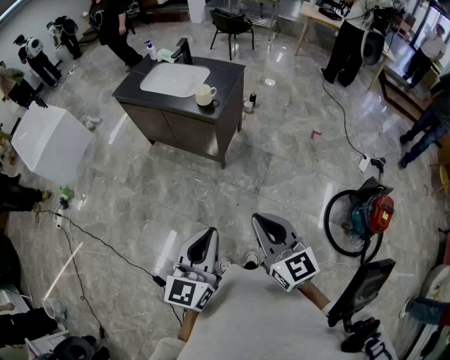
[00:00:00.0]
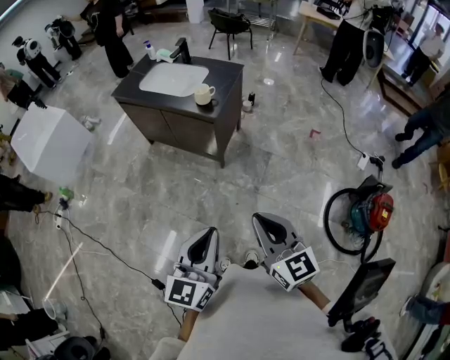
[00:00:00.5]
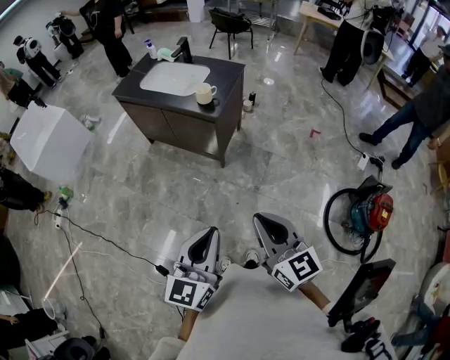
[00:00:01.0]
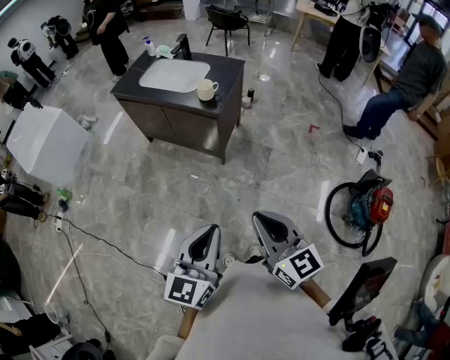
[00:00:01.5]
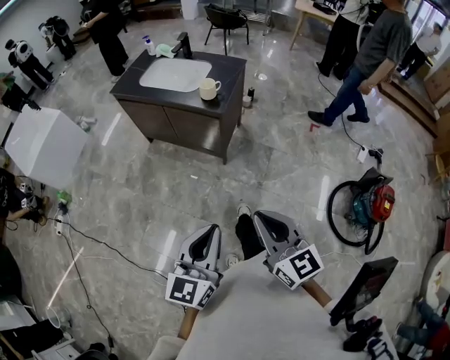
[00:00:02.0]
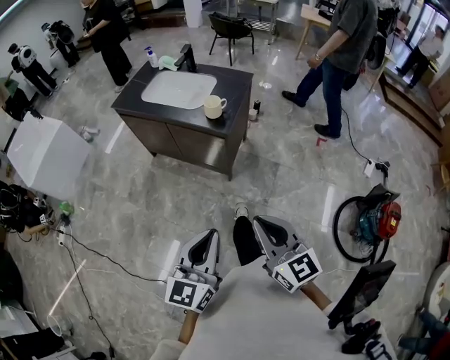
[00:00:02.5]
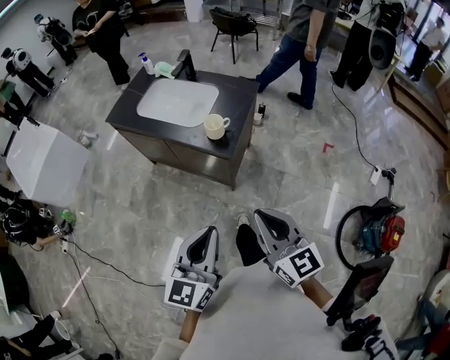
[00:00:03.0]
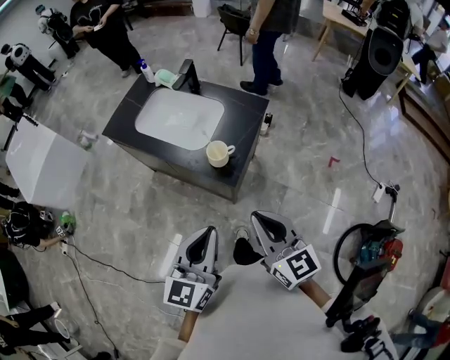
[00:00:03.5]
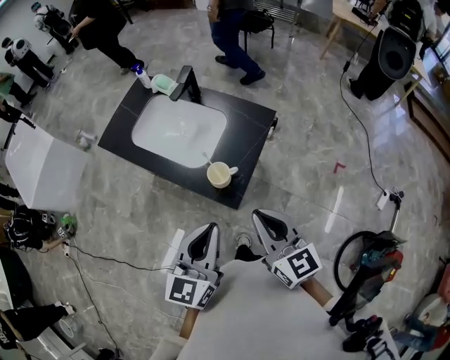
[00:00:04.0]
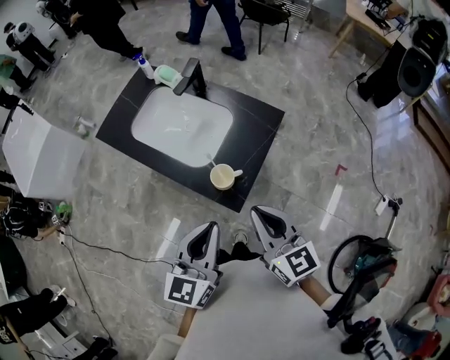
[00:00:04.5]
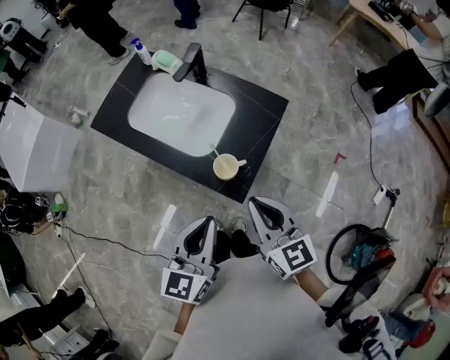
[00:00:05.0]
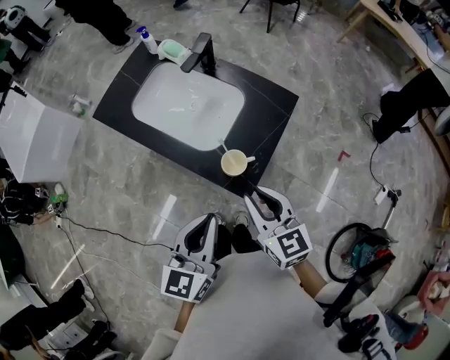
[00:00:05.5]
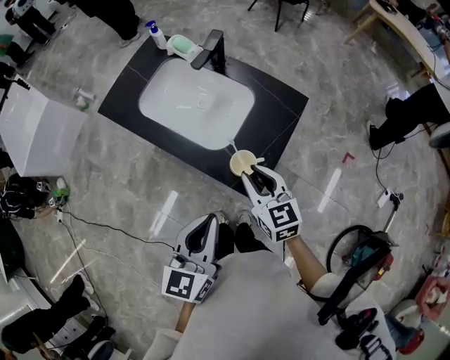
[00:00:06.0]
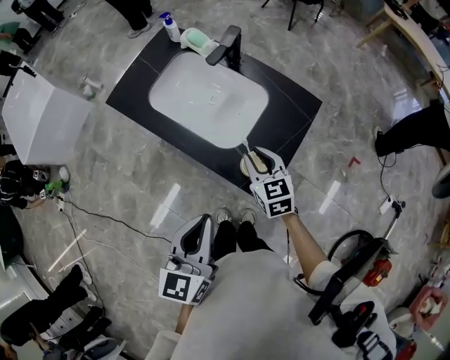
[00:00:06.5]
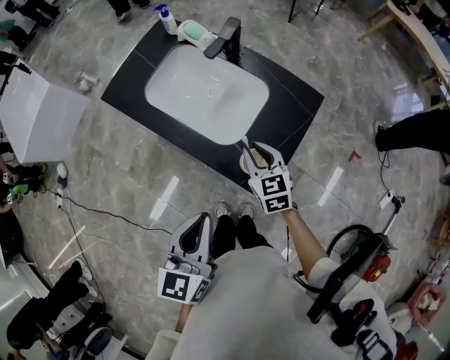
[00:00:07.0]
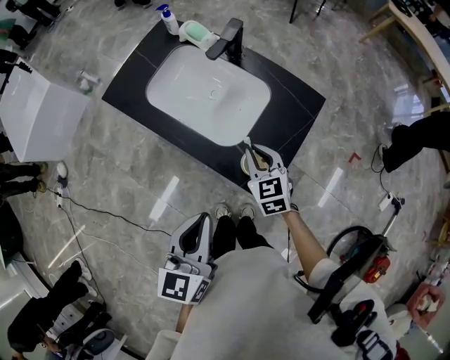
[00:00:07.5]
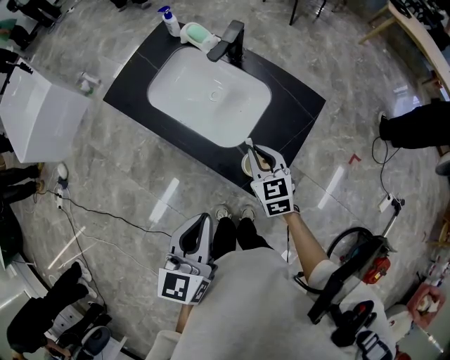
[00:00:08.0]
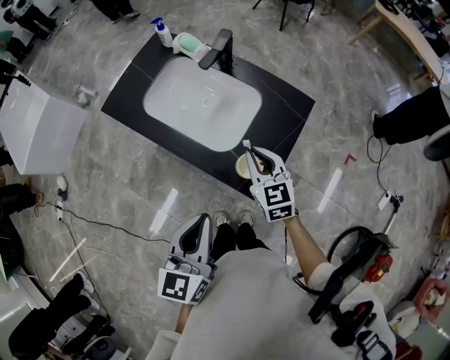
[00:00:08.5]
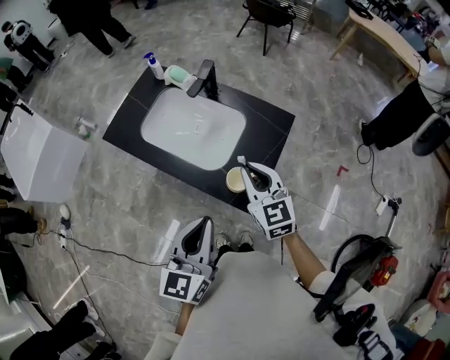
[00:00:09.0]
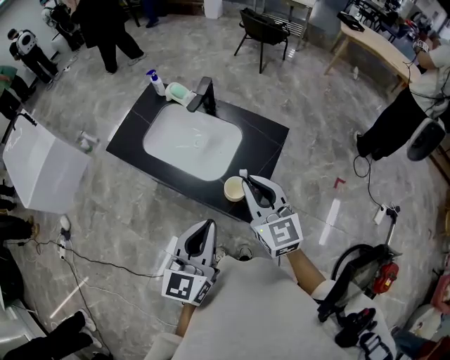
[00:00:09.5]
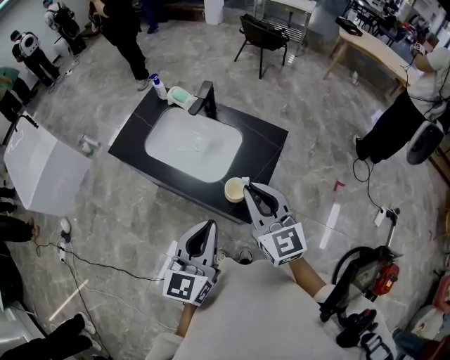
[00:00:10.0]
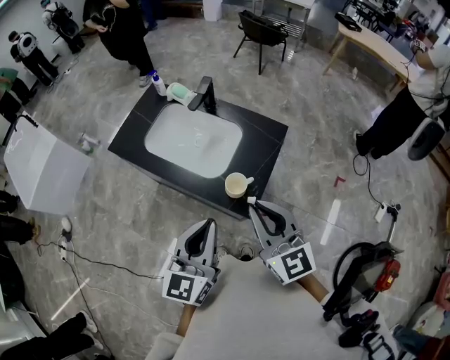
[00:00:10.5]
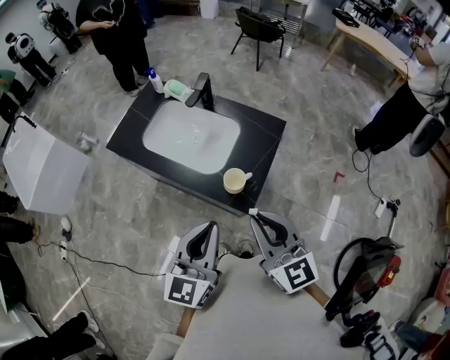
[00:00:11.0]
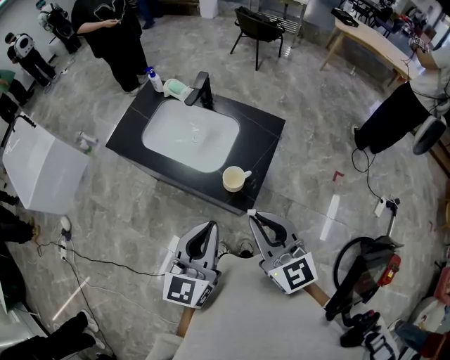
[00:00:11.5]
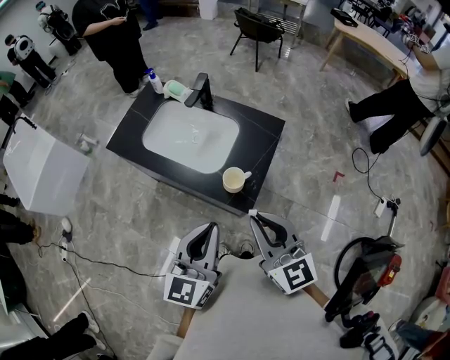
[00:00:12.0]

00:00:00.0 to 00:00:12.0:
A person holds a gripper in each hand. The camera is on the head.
00:00:00.0 to 00:00:02.0: The grippers stay close to where they were, moving slightly.
00:00:02.0 to 00:00:04.0: The two grippers travel together, forward, about 40 cm.
00:00:04.0 to 00:00:06.0: The left gripper moves to the left, roughly 5 cm, while the right gripper moves forward, downward and to the left, some 15 cm.
00:00:06.0 to 00:00:08.0: The right gripper is displaced forward and downward by approximately 10 cm.
00:00:08.0 to 00:00:10.0: The right gripper moves upward, roughly 20 cm, and rotates approximately 30 degrees; the left gripper changes place by approximately 5 cm.
00:00:10.0 to 00:00:12.0: The right gripper moves backward, approximately 10 cm.

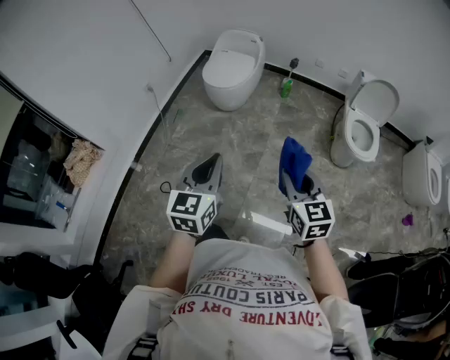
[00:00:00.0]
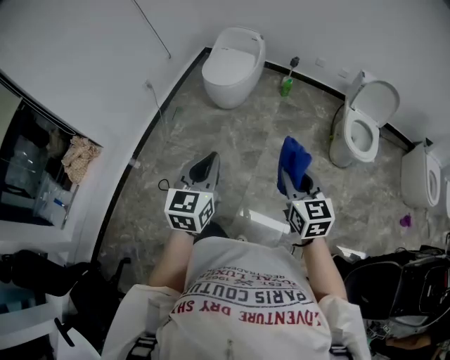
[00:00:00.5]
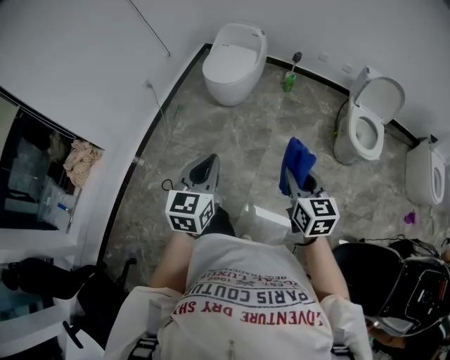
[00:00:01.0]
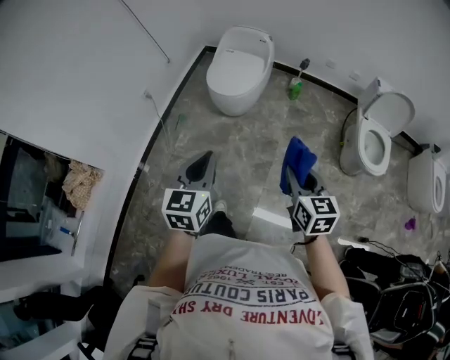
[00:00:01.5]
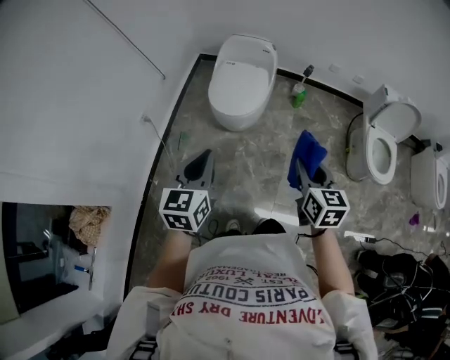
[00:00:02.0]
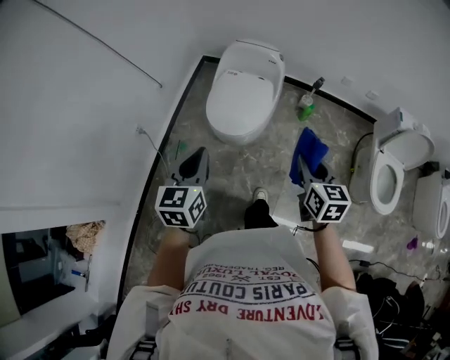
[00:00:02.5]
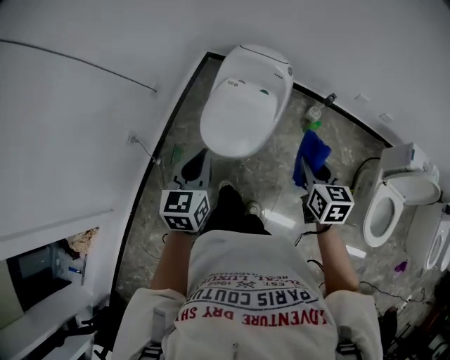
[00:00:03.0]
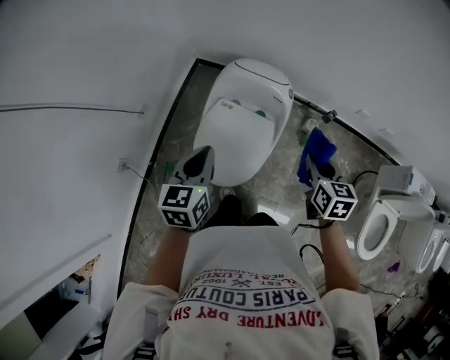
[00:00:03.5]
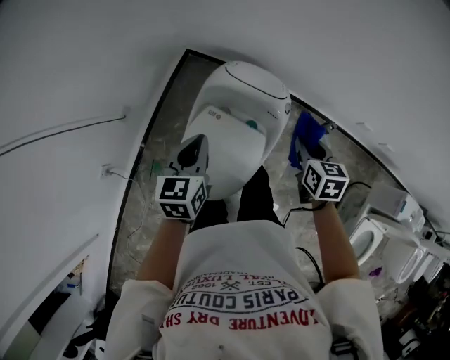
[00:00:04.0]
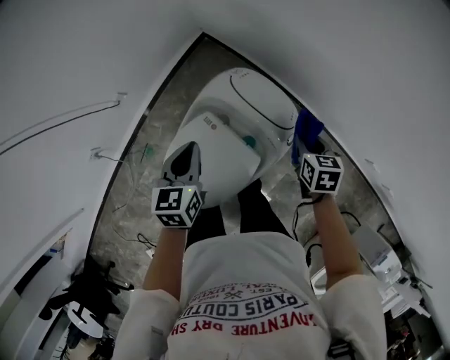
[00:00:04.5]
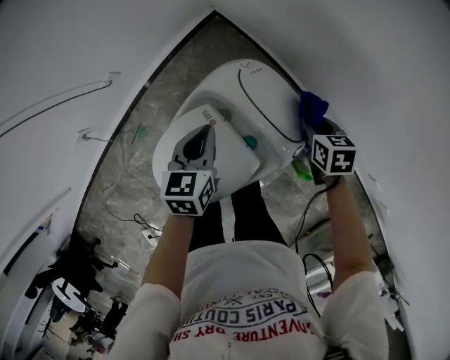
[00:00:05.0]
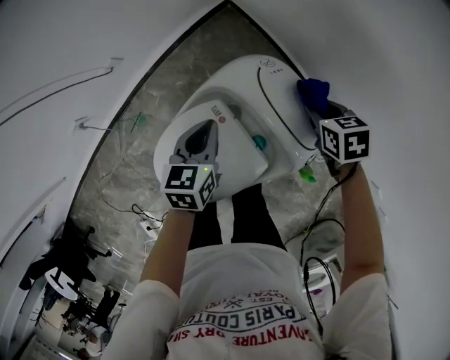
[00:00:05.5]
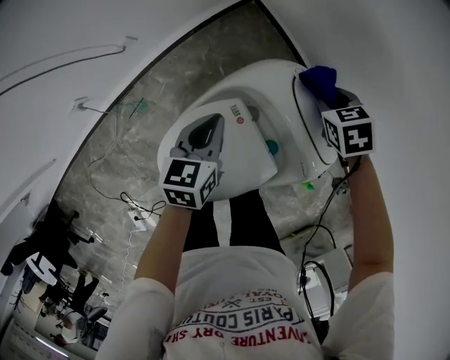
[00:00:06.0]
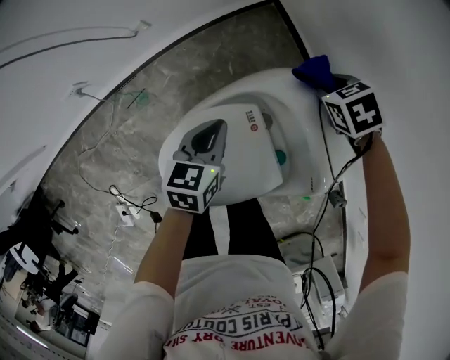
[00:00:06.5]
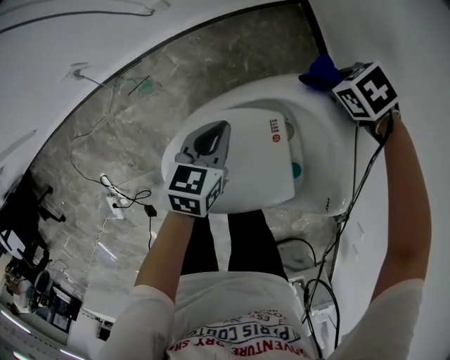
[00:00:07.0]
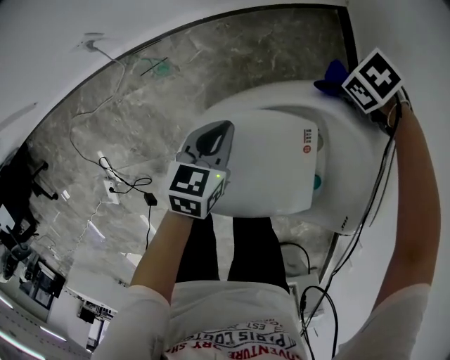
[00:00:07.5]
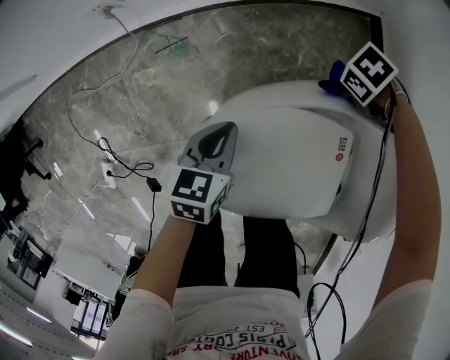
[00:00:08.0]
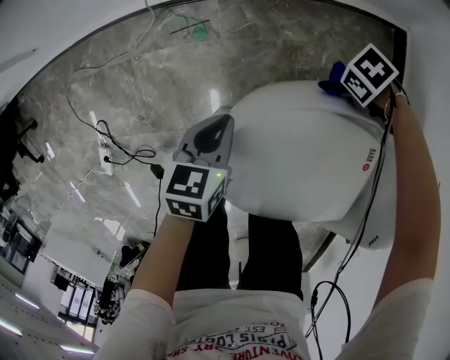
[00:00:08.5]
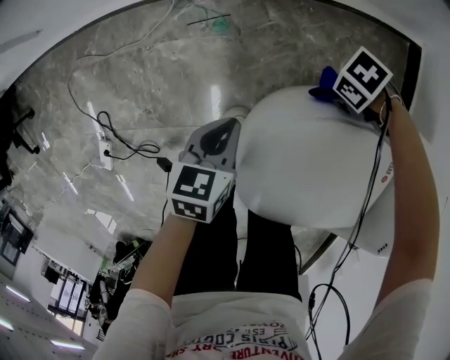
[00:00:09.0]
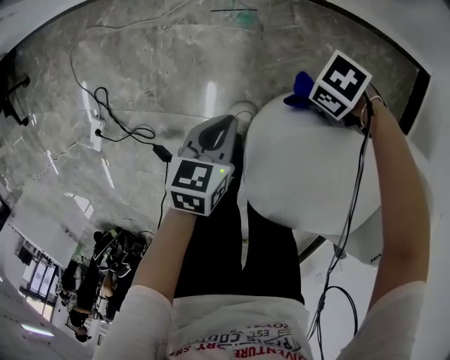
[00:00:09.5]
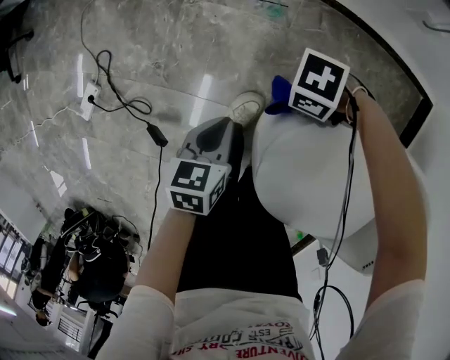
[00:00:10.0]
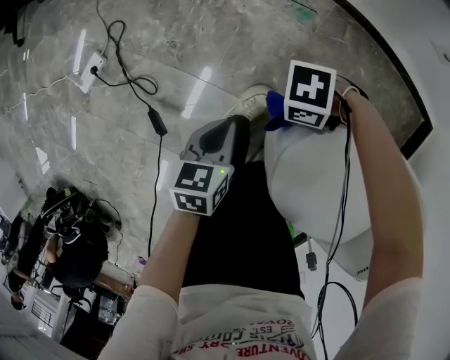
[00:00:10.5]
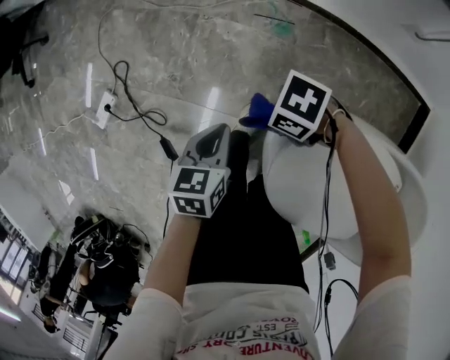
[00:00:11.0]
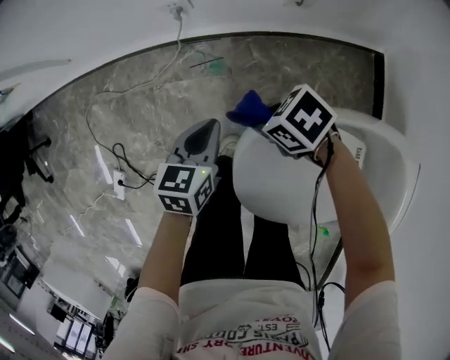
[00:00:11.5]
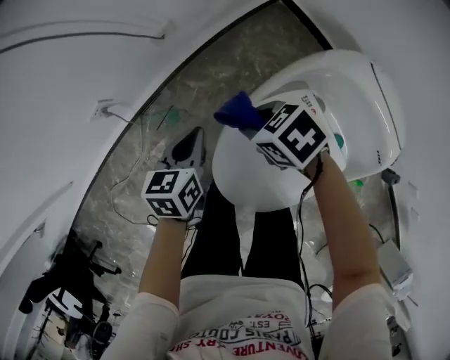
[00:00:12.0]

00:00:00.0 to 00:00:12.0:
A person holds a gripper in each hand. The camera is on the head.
00:00:00.0 to 00:00:02.0: The left gripper shifts about 40 cm forward and to the left. The right gripper is displaced forward by some 35 cm.
00:00:02.0 to 00:00:04.0: The two grippers travel together, forward, about 80 cm. The left gripper rotates approximately 20 degrees. Meanwhile the right gripper rotates roughly 20 degrees.
00:00:04.0 to 00:00:06.0: The right gripper ends up roughly 40 cm from where it was, and swivels about 60 degrees; the left gripper goes approximately 25 cm downward, and changes its angle by roughly 30 degrees.
00:00:06.0 to 00:00:08.0: The right gripper shifts by some 35 cm, and rotates roughly 60 degrees. The left gripper changes place by roughly 30 cm, and swivels roughly 20 degrees.
00:00:08.0 to 00:00:10.0: The left gripper moves to the right and backward, some 30 cm, and turns by roughly 30 degrees. Meanwhile the right gripper is displaced backward and to the right by some 40 cm, and rotates around the line of its fingers by approximately 50 degrees, counterclockwise from behind.
00:00:10.0 to 00:00:12.0: The left gripper ends up some 35 cm from where it was, and swivels some 50 degrees. The right gripper travels upward by about 25 cm, and turns by about 90 degrees.

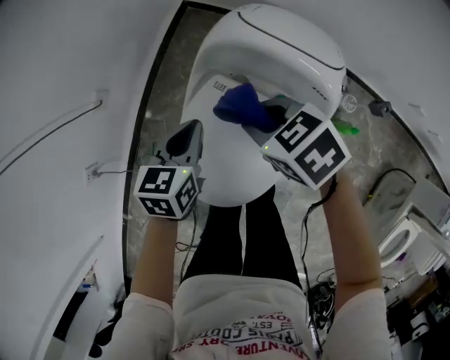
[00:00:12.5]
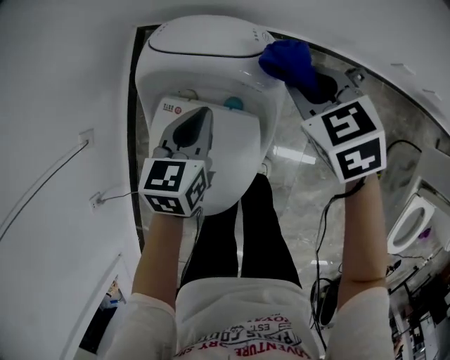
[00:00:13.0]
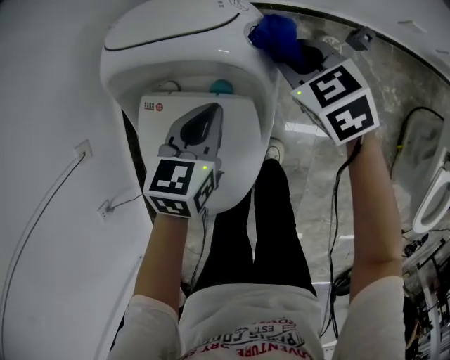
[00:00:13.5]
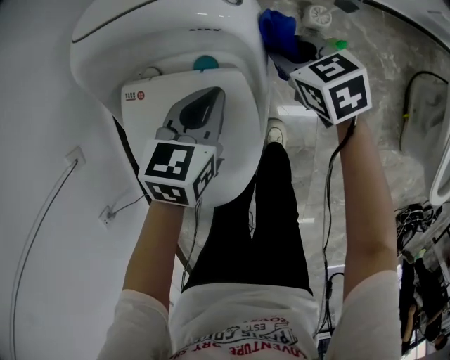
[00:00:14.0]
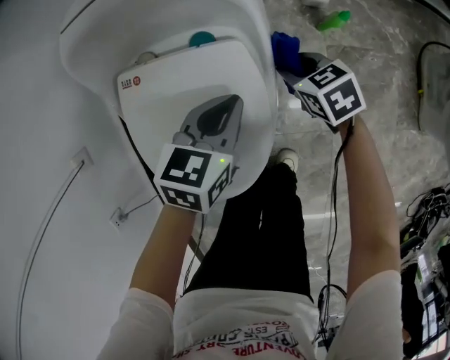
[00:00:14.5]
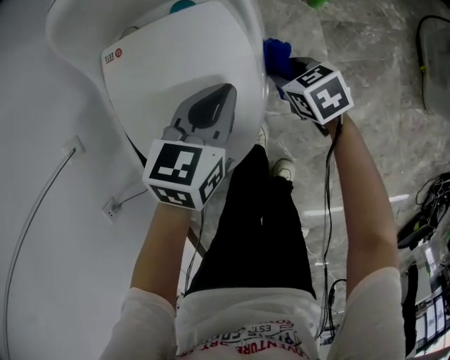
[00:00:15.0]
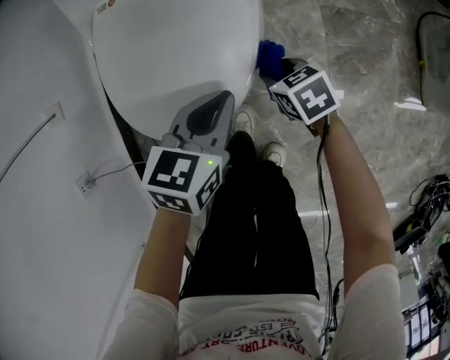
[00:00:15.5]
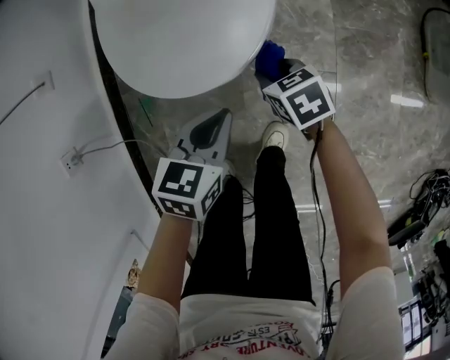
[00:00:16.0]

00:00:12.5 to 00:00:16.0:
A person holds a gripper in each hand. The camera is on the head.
00:00:12.5 to 00:00:14.5: The left gripper changes place by some 30 cm, and rotates some 40 degrees; the right gripper goes some 25 cm downward, and rotates about 40 degrees.
00:00:14.5 to 00:00:16.0: The left gripper heads backward, covering roughly 35 cm. Meanwhile the right gripper travels backward and to the left by approximately 35 cm.
